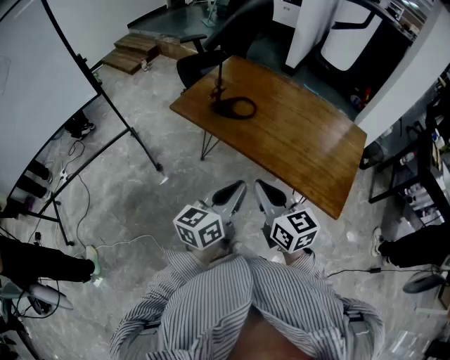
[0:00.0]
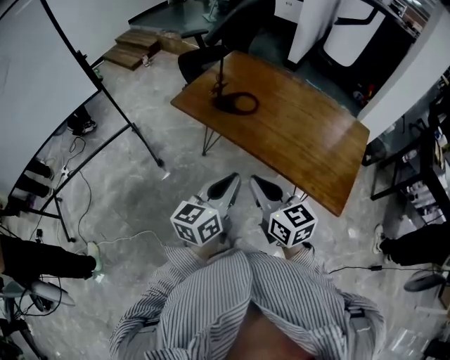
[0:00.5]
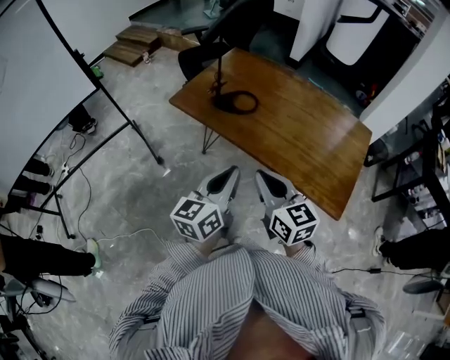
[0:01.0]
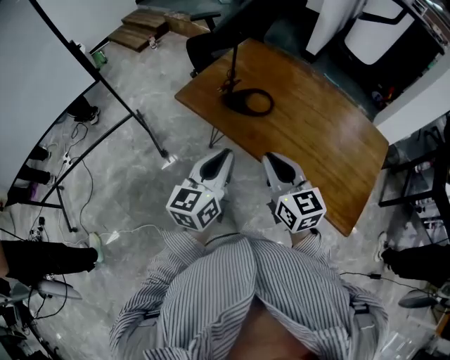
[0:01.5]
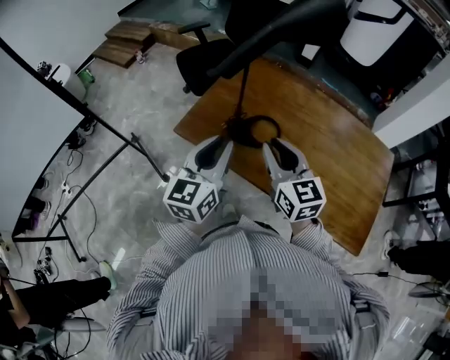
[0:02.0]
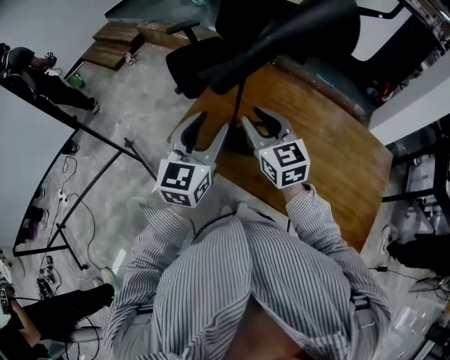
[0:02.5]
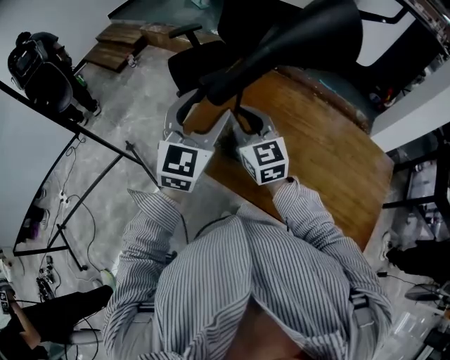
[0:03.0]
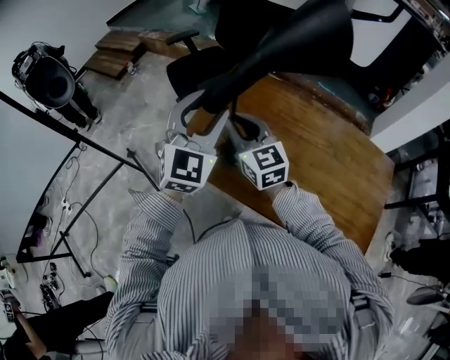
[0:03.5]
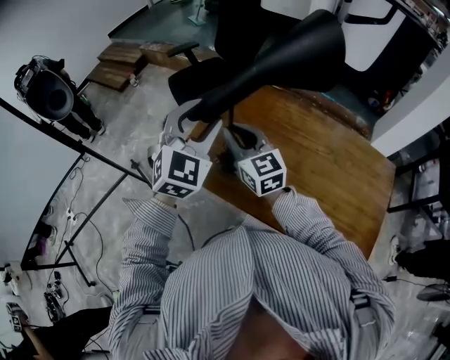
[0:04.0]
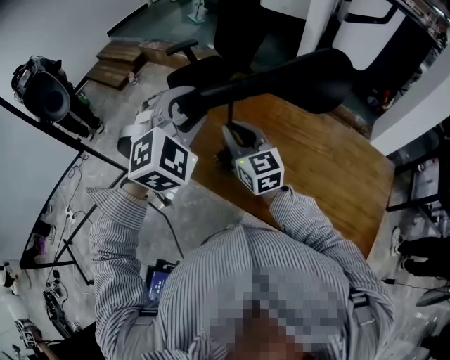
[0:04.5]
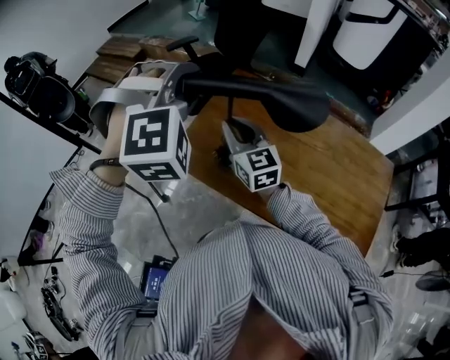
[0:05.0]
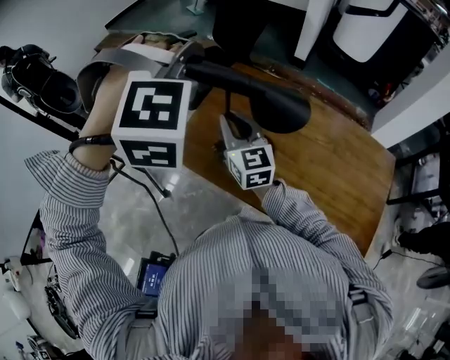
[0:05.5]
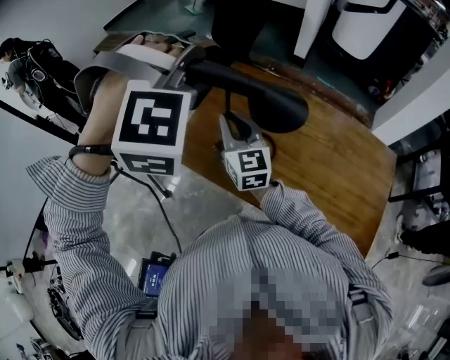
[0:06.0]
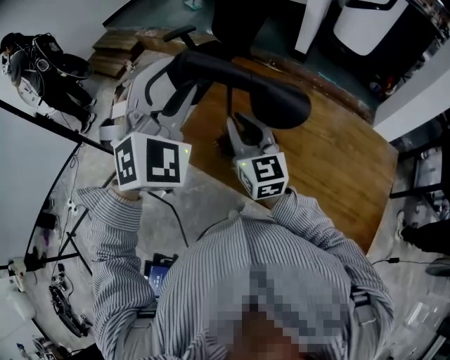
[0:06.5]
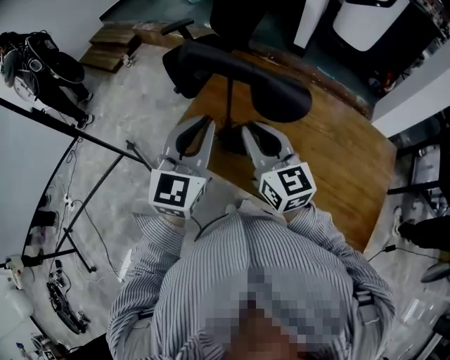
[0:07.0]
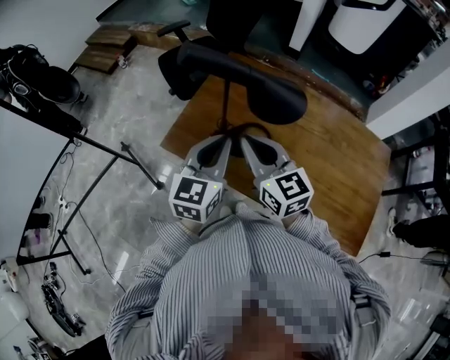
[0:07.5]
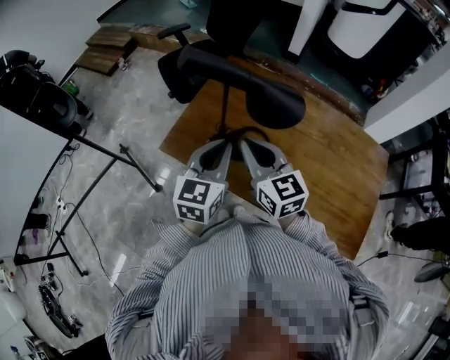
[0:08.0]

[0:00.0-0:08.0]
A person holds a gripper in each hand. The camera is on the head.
0.0 to 2.0 s: Both grippers move forward, about 35 cm. The left gripper turns by roughly 20 degrees.
2.0 to 4.0 s: The left gripper is displaced forward and upward by approximately 15 cm, rolls clockwise, seen from behind, by some 50 degrees, and opens up, while the right gripper travels forward and to the left by about 15 cm.
4.0 to 6.0 s: The left gripper travels upward by roughly 10 cm, and rotates around the line of its fingers by about 70 degrees, clockwise from behind.
6.0 to 8.0 s: The right gripper is displaced backward by approximately 10 cm; the left gripper is displaced downward by roughly 20 cm, twists about 100 degrees counterclockwise, seen from behind, and closes up.

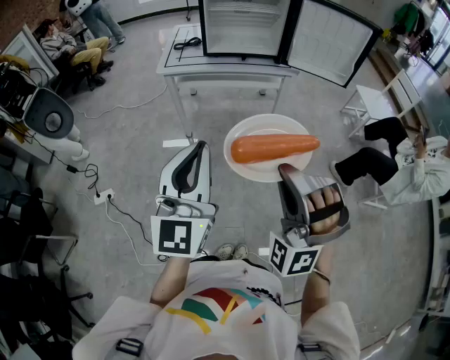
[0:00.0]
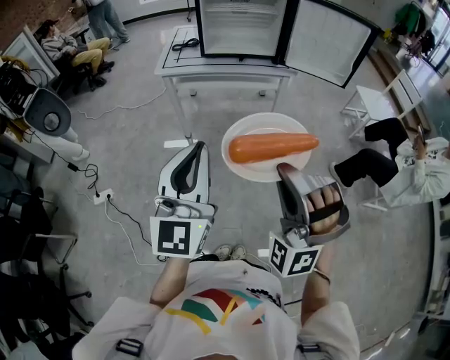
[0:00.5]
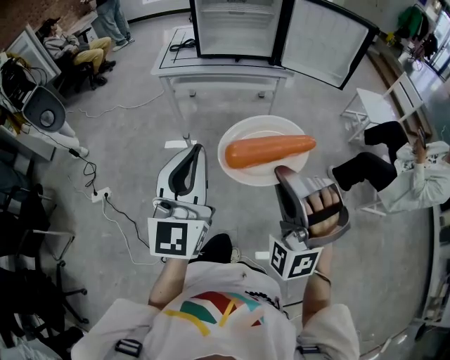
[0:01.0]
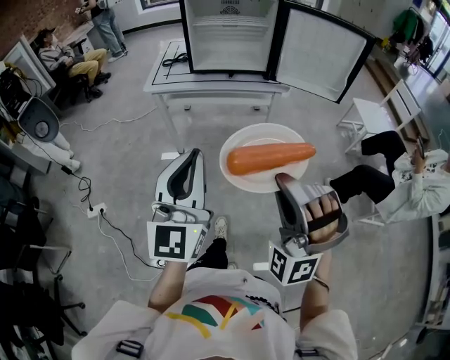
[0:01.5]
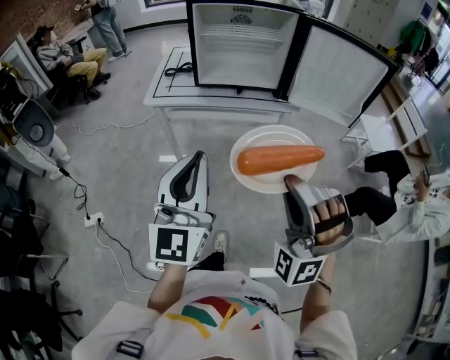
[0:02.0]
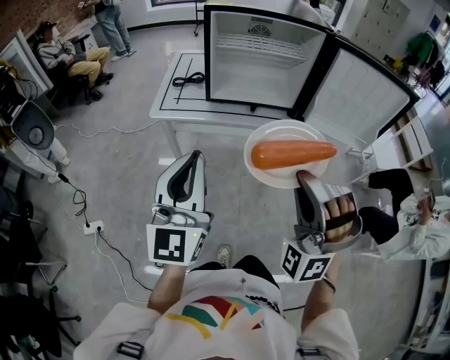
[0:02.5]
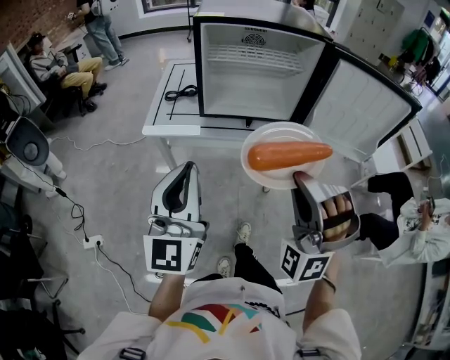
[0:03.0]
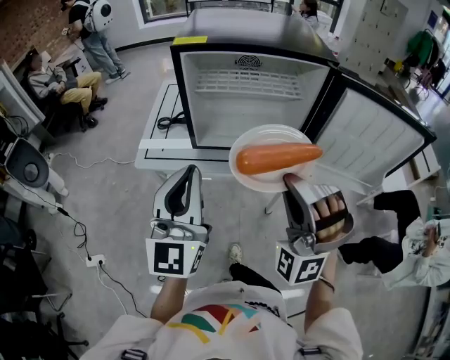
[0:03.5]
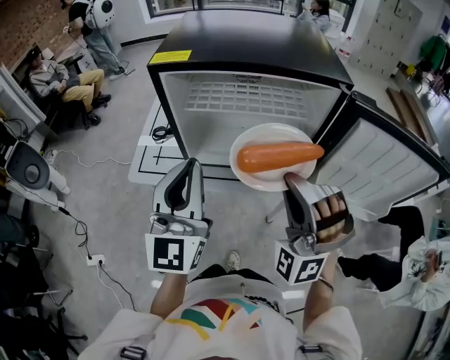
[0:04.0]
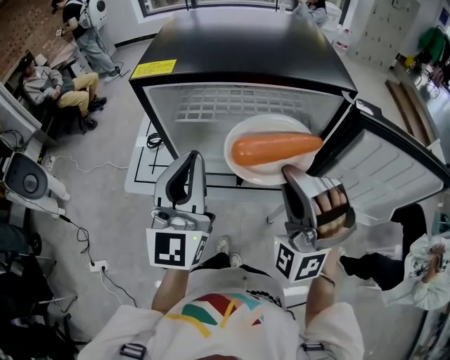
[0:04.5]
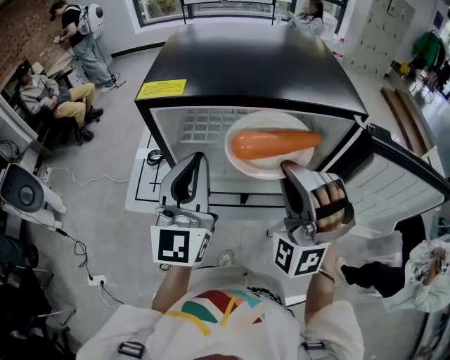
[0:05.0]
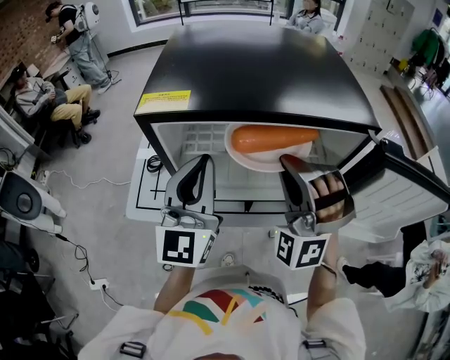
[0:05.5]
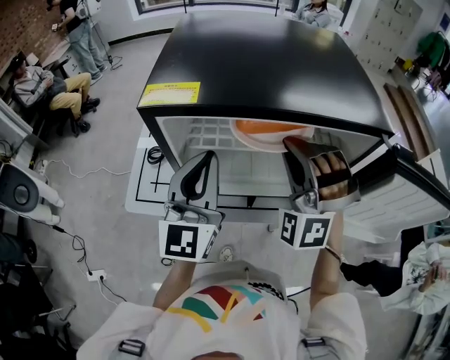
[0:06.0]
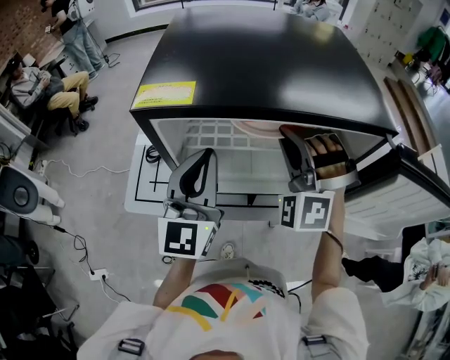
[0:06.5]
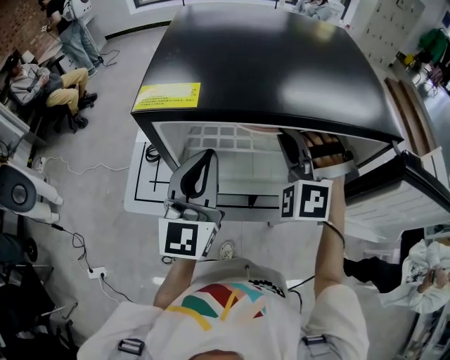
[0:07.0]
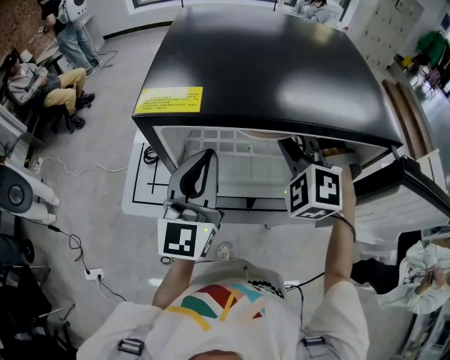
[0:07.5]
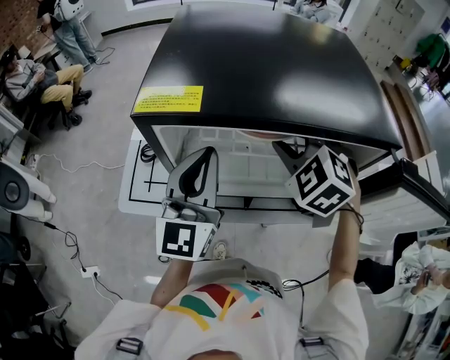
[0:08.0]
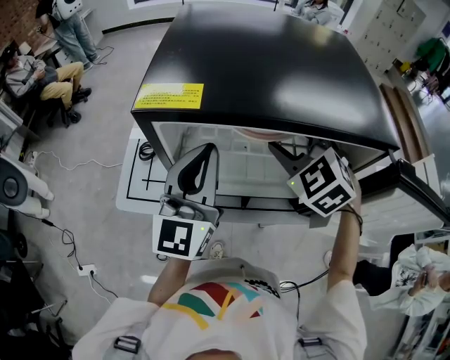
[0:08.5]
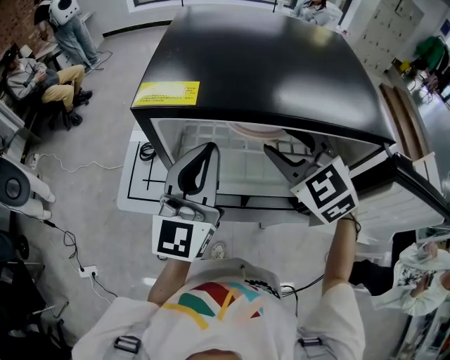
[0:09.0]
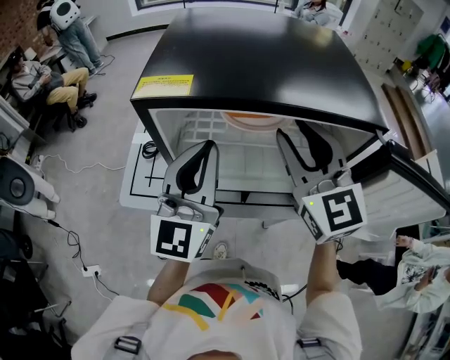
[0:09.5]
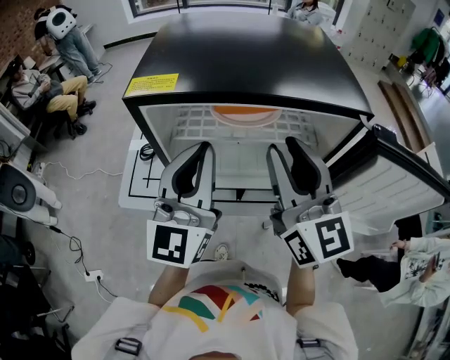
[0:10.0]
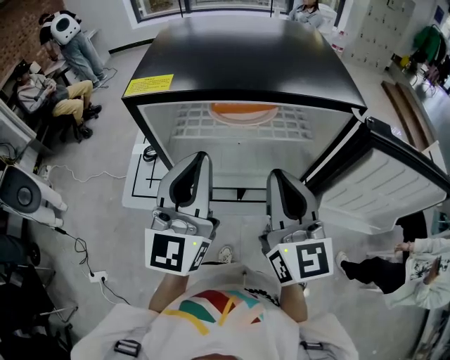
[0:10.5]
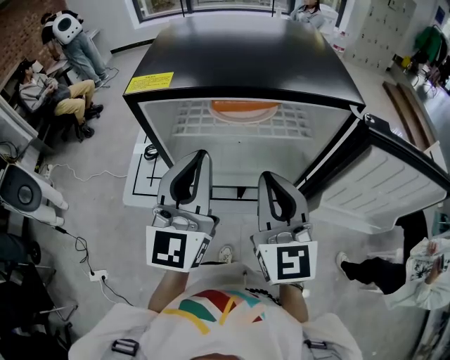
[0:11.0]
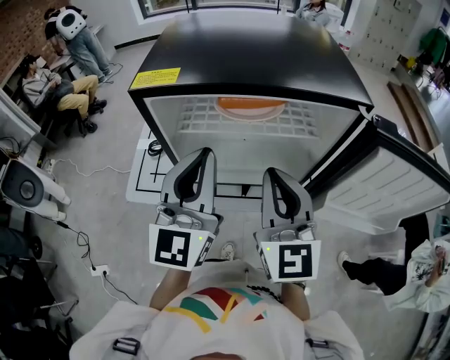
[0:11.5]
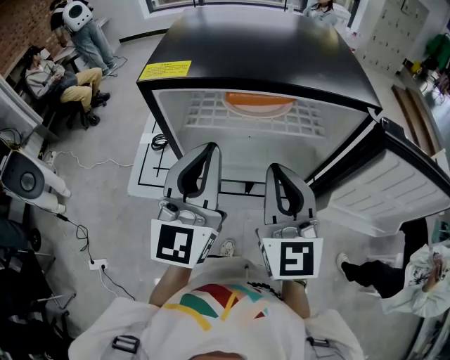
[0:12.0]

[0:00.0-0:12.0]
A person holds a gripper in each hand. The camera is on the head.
0.0 to 2.0 s: Both grippers move forward, roughly 20 cm.
2.0 to 4.0 s: Both grippers move forward, roughly 40 cm.
4.0 to 6.0 s: The grippers both shift forward by approximately 15 cm.
6.0 to 8.0 s: The right gripper heads forward, covering about 5 cm, and angles its fingers downward, by approximately 30 degrees.
8.0 to 10.0 s: The left gripper heads backward and upward, covering approximately 10 cm, while the right gripper travels backward and upward by approximately 15 cm, and points its fingers approximately 50 degrees further upward.
10.0 to 12.0 s: The right gripper travels downward by some 5 cm, and closes its fingers.

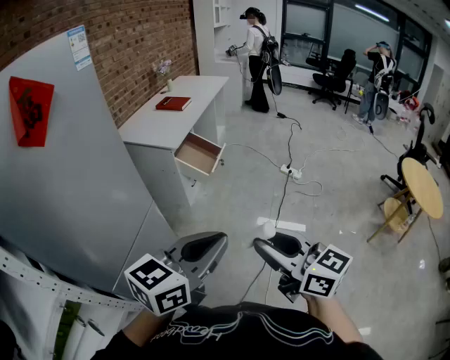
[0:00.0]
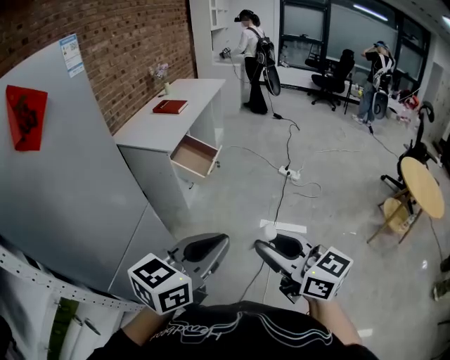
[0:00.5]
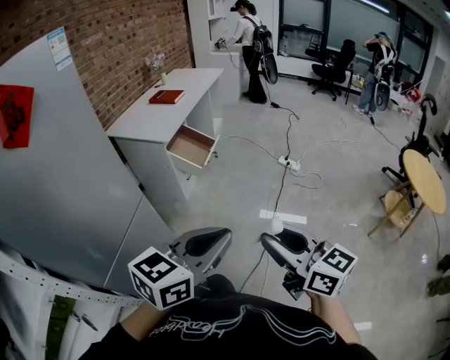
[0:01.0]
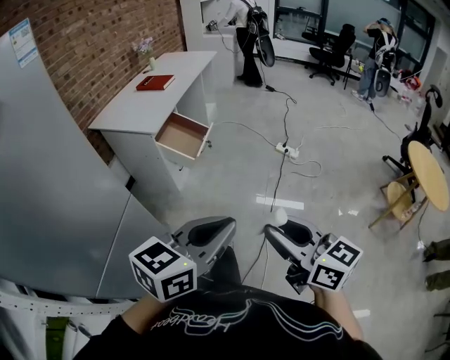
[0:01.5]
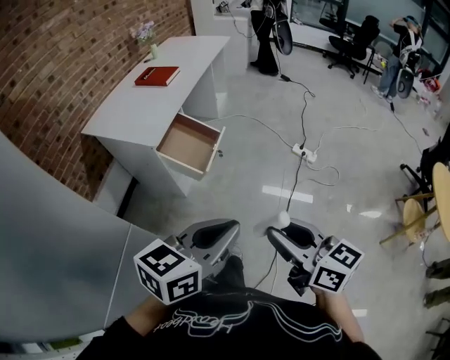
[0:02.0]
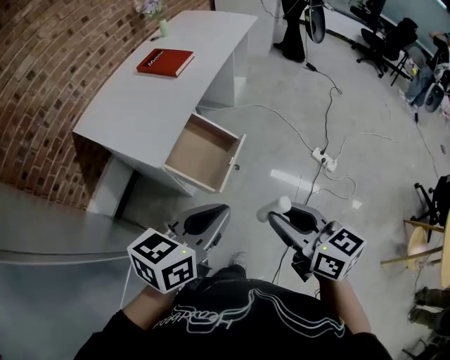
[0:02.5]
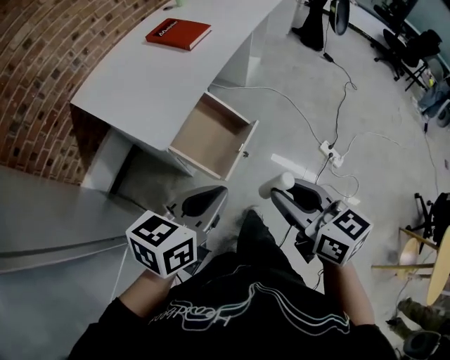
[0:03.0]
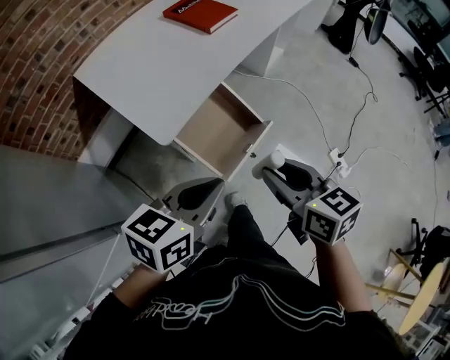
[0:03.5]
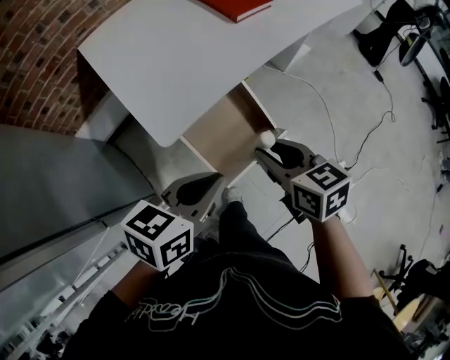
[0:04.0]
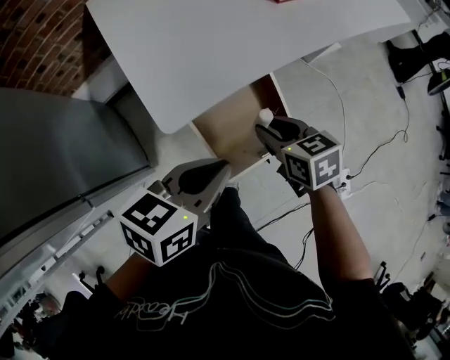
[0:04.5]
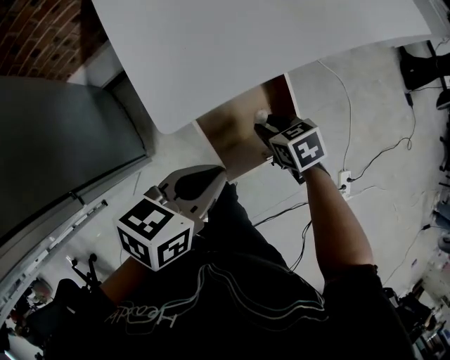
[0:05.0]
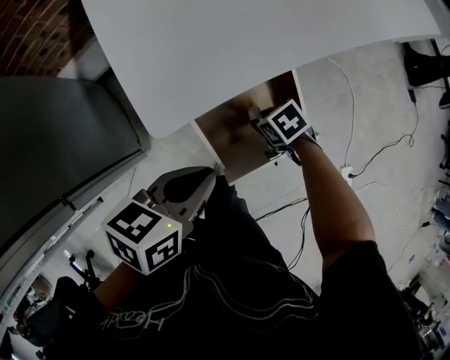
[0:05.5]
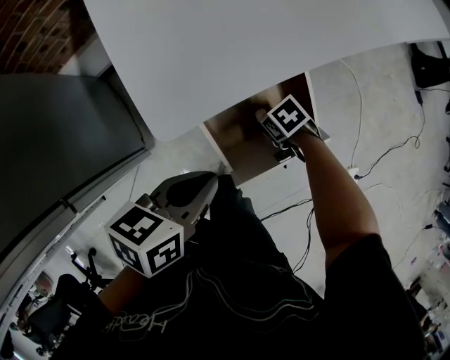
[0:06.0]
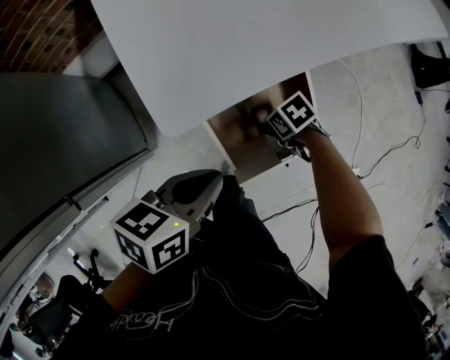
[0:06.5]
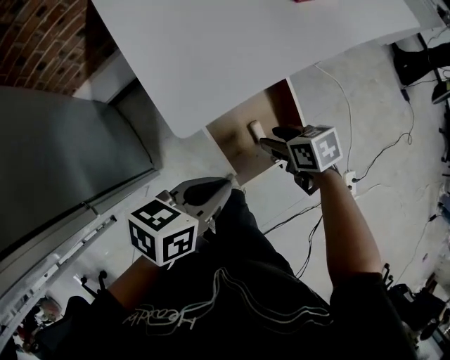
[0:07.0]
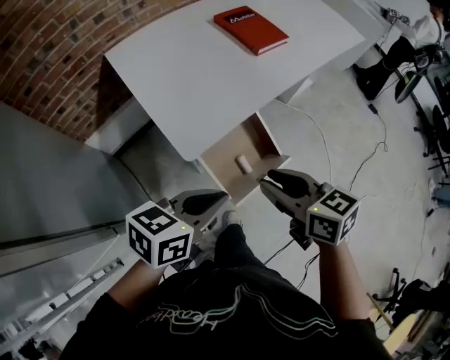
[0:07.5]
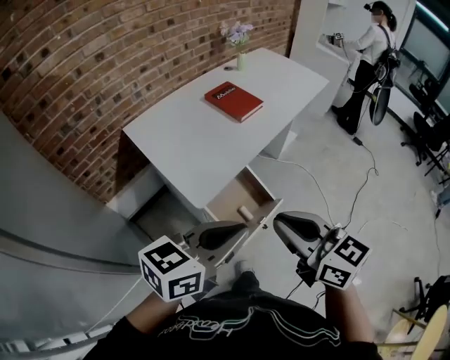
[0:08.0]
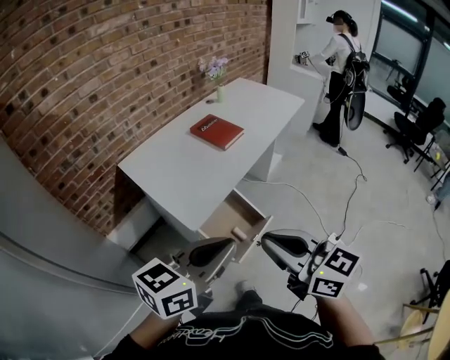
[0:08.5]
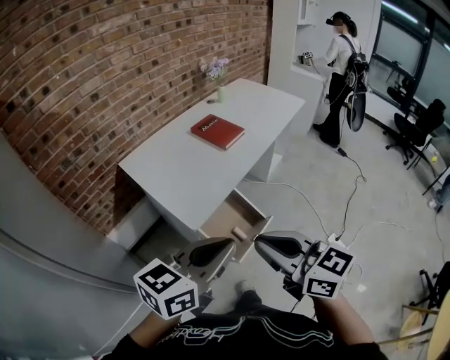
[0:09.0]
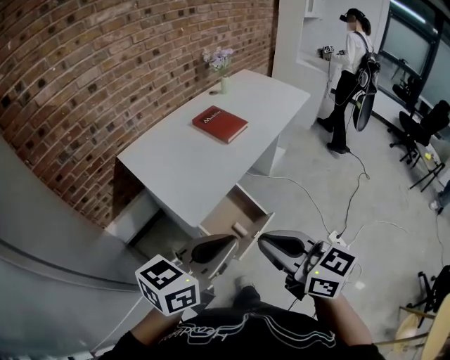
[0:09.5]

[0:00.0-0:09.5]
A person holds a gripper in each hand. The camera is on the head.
0.0 to 2.0 s: Both grippers move forward, roughly 35 cm.
2.0 to 4.0 s: The two grippers travel together, about 60 cm. The left gripper changes its angle by approximately 40 degrees, while the right gripper rotates roughly 40 degrees.
4.0 to 5.5 s: The left gripper shifts some 15 cm downward; the right gripper moves downward, approximately 35 cm, and tilts its fingers some 30 degrees downward.
5.5 to 7.5 s: The right gripper shifts approximately 40 cm upward, and tilts its fingers roughly 40 degrees upward; the left gripper moves upward, some 20 cm, and rotates about 20 degrees.
7.5 to 9.5 s: The grippers both shift upward and backward by roughly 25 cm. The right gripper swivels approximately 30 degrees; the left gripper turns by some 20 degrees.
